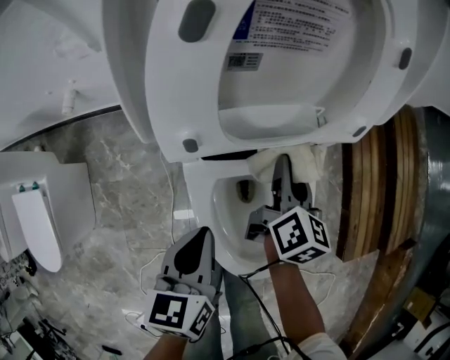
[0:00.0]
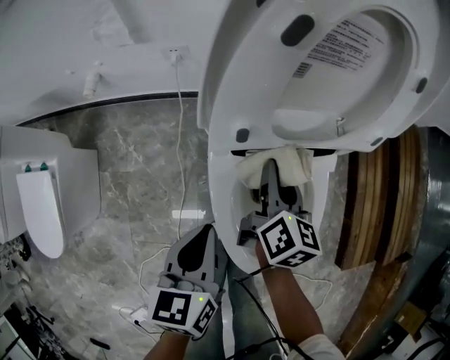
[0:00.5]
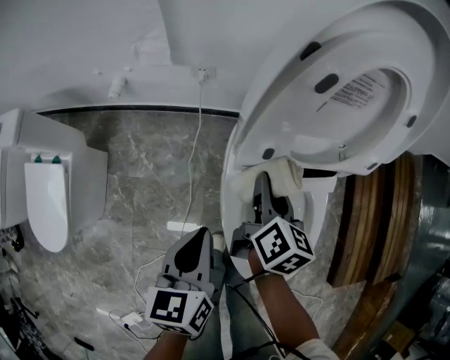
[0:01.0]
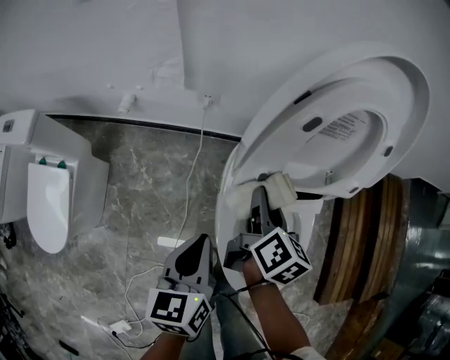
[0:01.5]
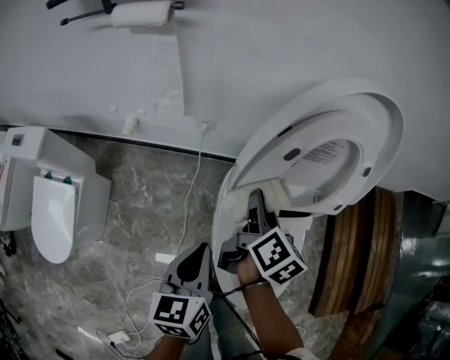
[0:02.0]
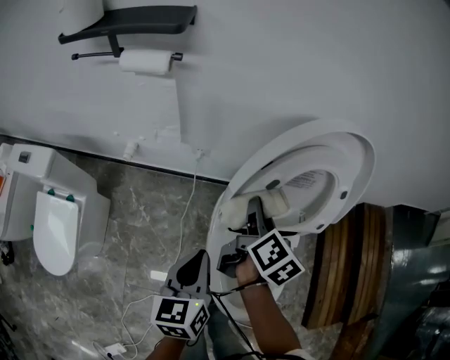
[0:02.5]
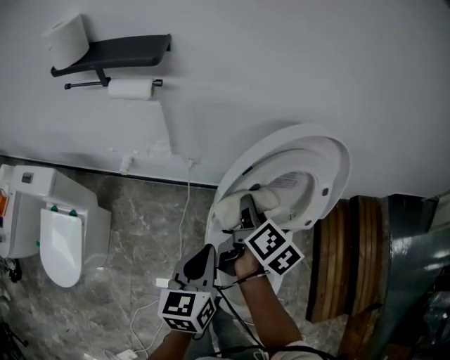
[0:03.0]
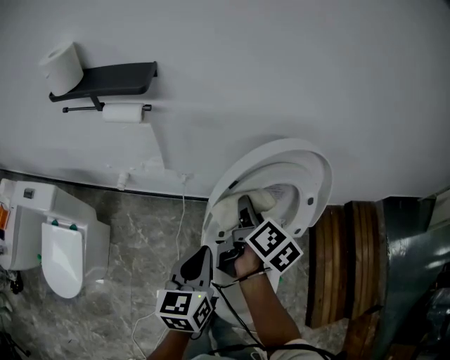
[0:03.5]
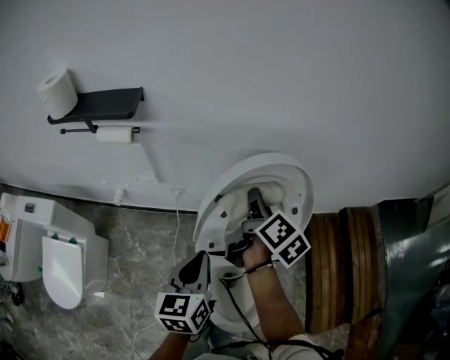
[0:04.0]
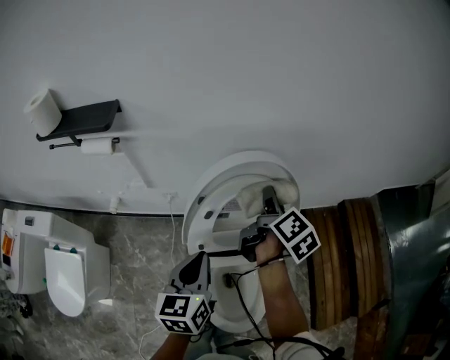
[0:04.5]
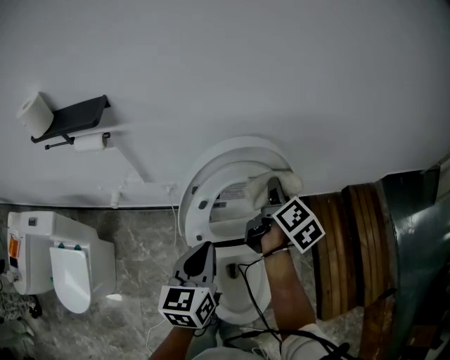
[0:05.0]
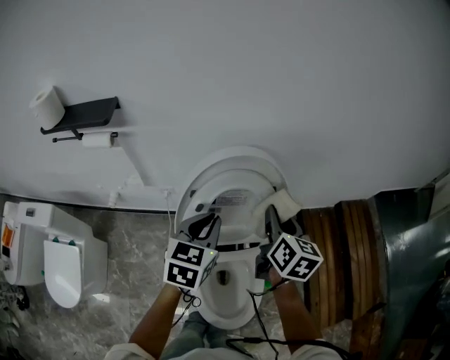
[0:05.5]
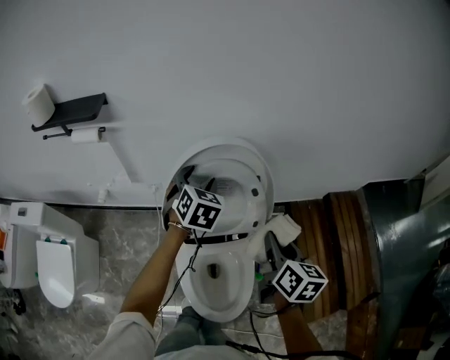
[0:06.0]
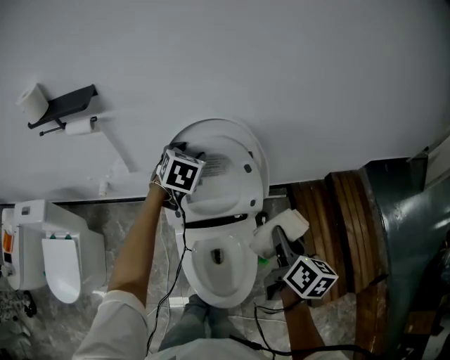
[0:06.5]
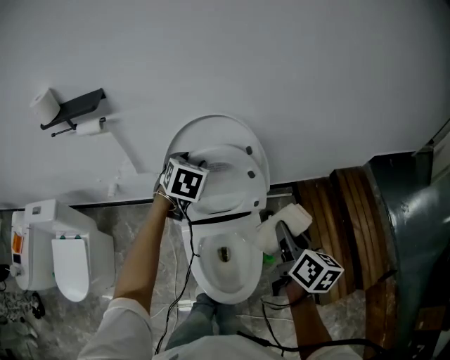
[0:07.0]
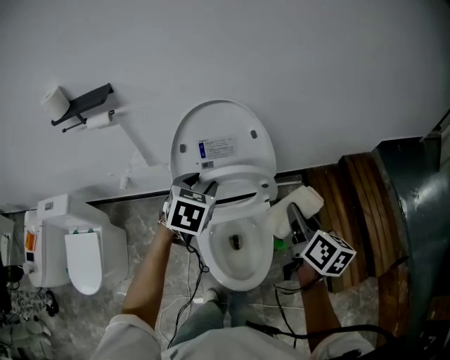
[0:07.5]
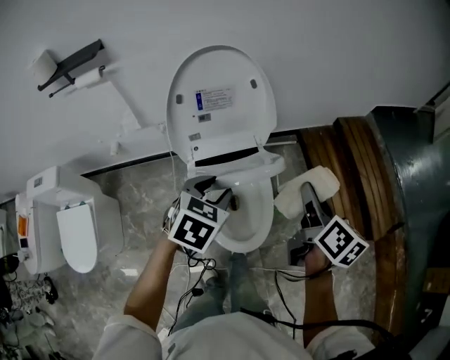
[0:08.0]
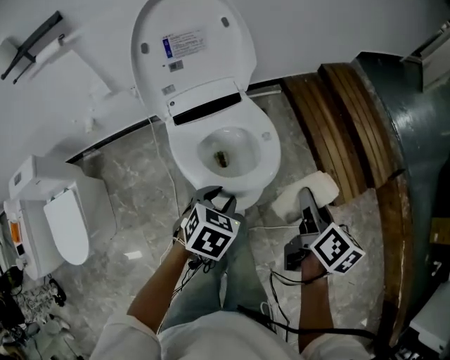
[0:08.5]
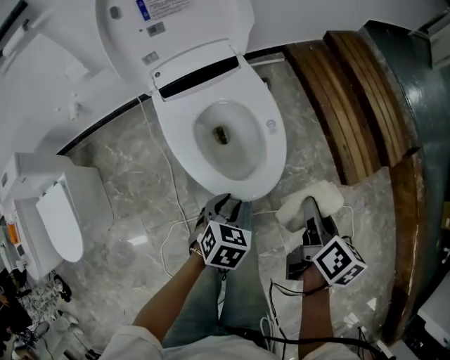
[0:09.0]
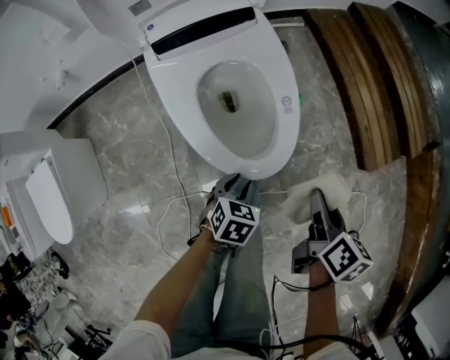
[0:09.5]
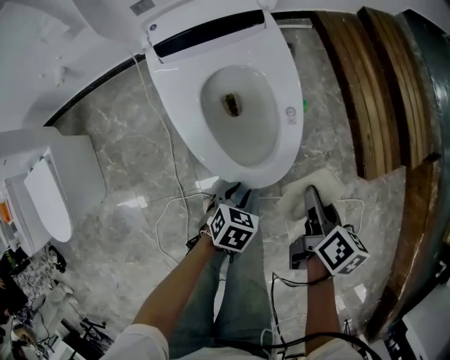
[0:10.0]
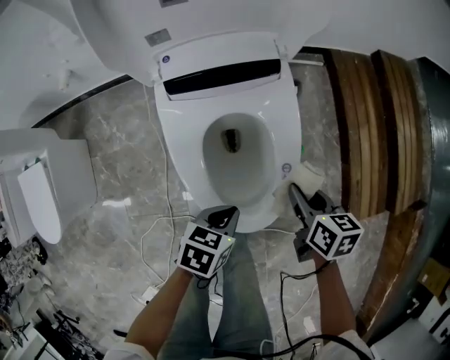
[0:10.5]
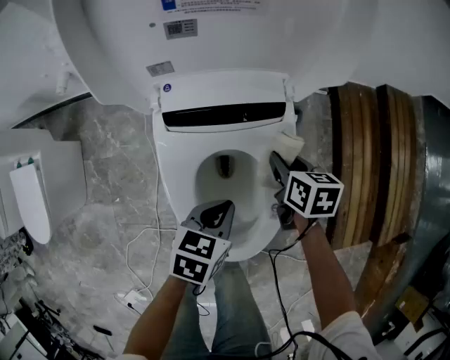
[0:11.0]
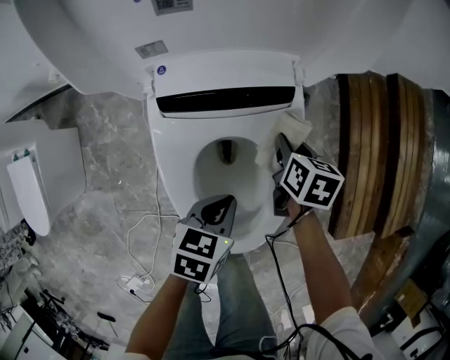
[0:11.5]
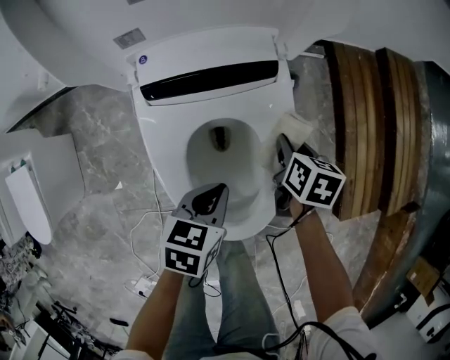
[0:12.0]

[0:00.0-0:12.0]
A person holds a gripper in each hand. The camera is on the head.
0.0 to 2.0 s: The right gripper is displaced to the left and upward by some 25 cm, while the left gripper shifts some 15 cm upward and to the left.
2.0 to 4.0 s: Both grippers travel together upward, forward and to the right, some 20 cm.
4.0 to 6.0 s: The left gripper travels forward and to the right by approximately 20 cm, rotates around the line of its fingers by approximately 40 degrees, clockwise from behind, and opens up. The right gripper travels to the right and backward by roughly 25 cm, and rotates roughly 30 degrees.
6.0 to 8.0 s: The left gripper travels backward by about 30 cm, and turns by about 30 degrees; the right gripper moves backward and to the right, approximately 20 cm.
8.0 to 10.0 s: The grippers both shift downward and backward by approximately 40 cm. The left gripper turns by roughly 20 degrees, while the right gripper rotates about 30 degrees.
10.0 to 12.0 s: The right gripper goes approximately 30 cm forward, and rotates some 30 degrees. Meanwhile the left gripper shifts some 20 cm forward and upward, swivels approximately 30 degrees, and closes.

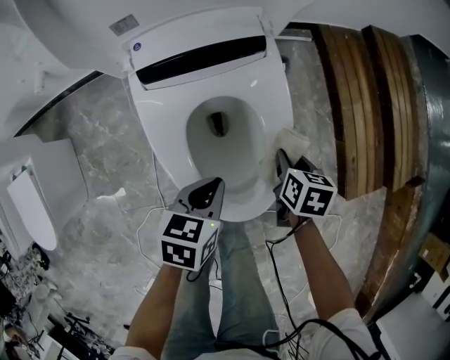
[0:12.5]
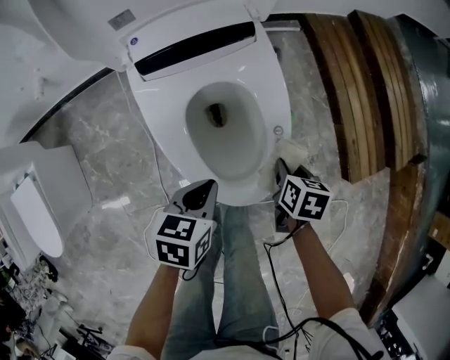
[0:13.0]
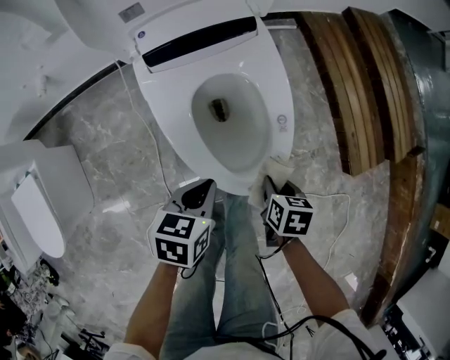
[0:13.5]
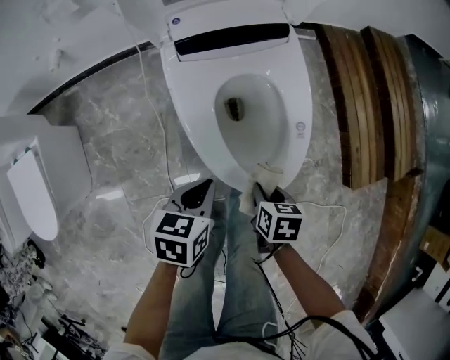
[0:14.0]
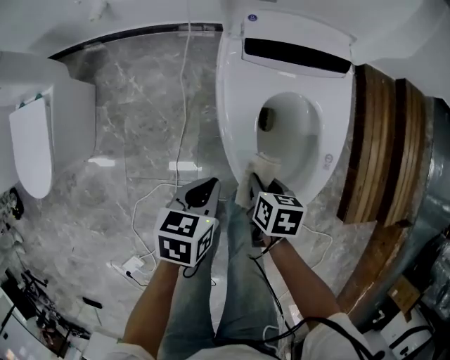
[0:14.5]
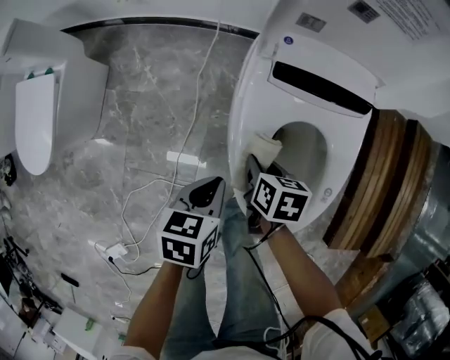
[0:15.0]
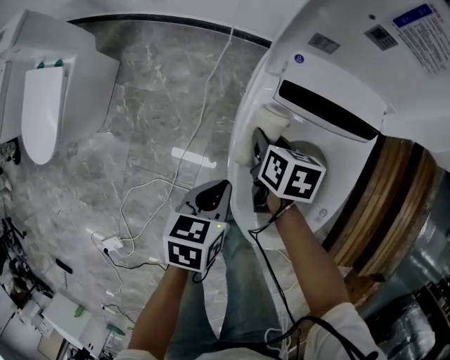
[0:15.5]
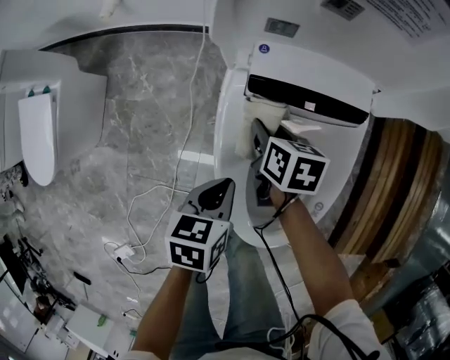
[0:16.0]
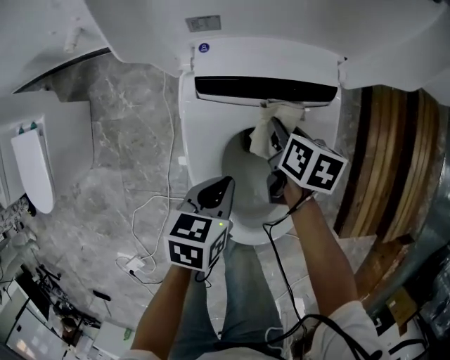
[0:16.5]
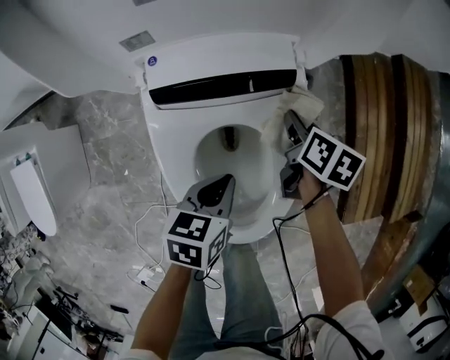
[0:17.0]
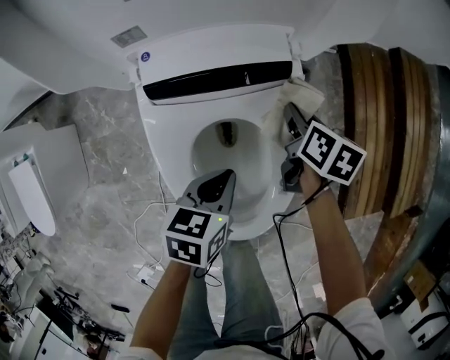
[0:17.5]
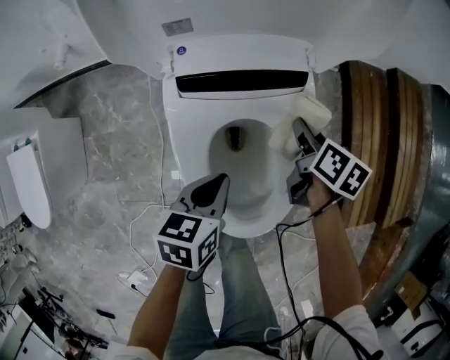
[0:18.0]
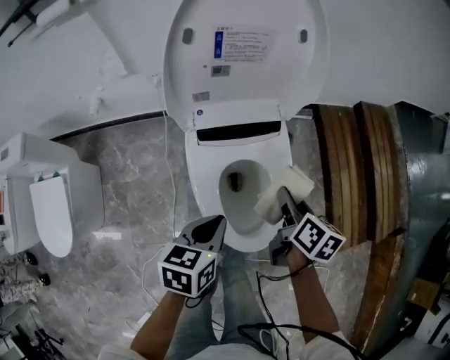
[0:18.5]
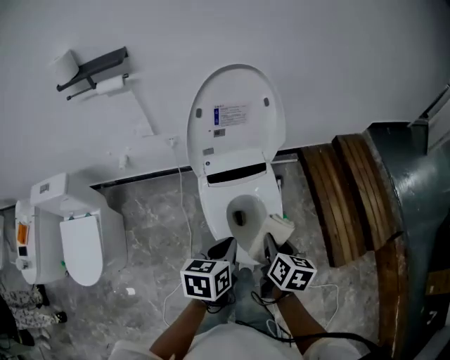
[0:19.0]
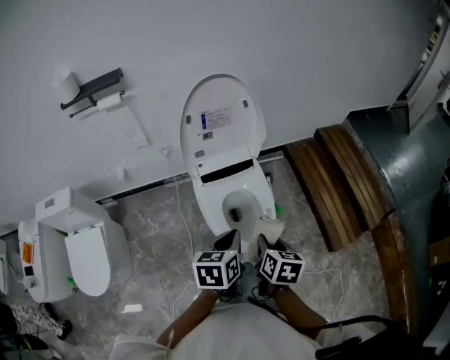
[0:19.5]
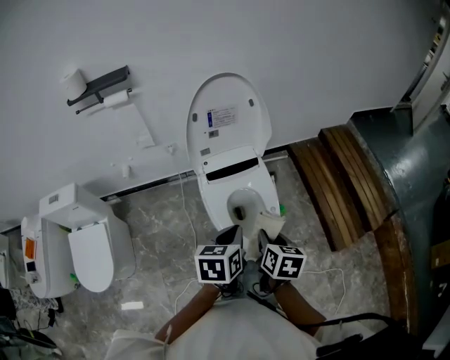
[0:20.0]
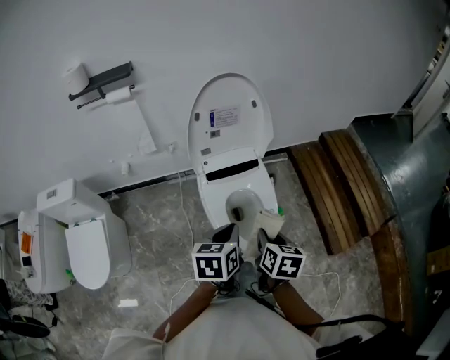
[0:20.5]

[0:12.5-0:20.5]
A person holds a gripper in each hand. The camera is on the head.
12.5 to 14.5 s: The left gripper changes place by approximately 20 cm. Meanwhile the right gripper shifts by about 25 cm.
14.5 to 16.5 s: The right gripper moves forward and to the right, about 30 cm. Meanwhile the left gripper is displaced to the right and forward by approximately 15 cm.
16.5 to 18.5 s: The right gripper travels upward and backward by some 25 cm, and changes its angle by approximately 30 degrees. The left gripper goes approximately 15 cm upward.
18.5 to 20.5 s: The right gripper shifts roughly 25 cm backward and upward; the left gripper heads upward and backward, covering about 20 cm.

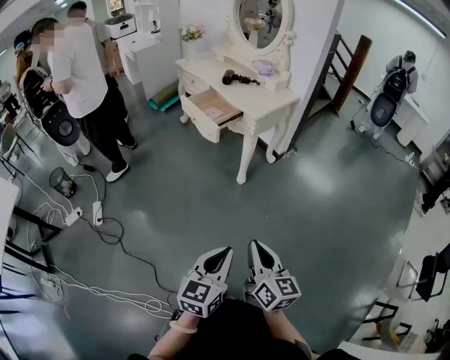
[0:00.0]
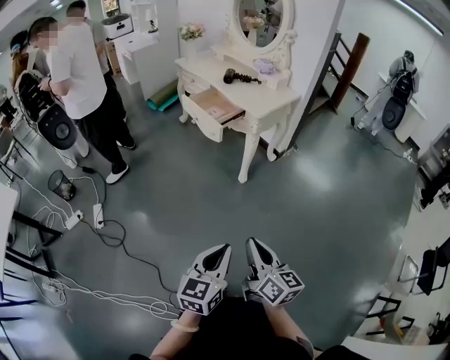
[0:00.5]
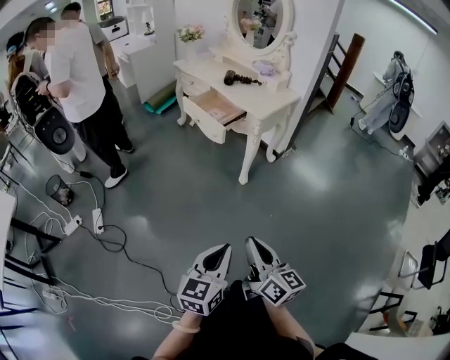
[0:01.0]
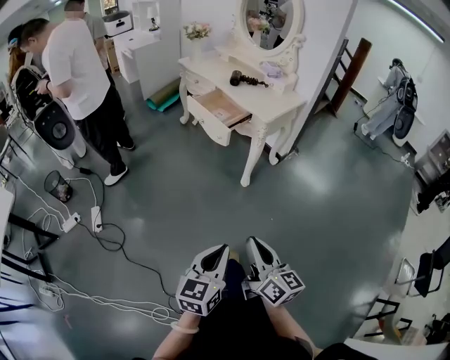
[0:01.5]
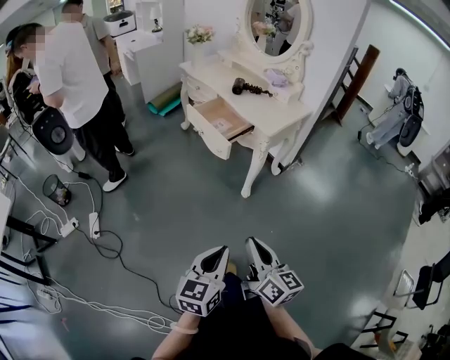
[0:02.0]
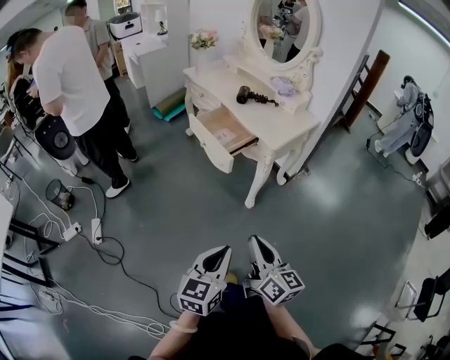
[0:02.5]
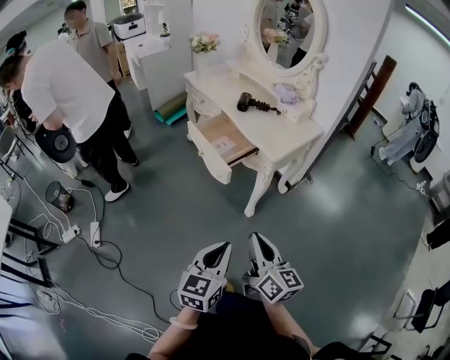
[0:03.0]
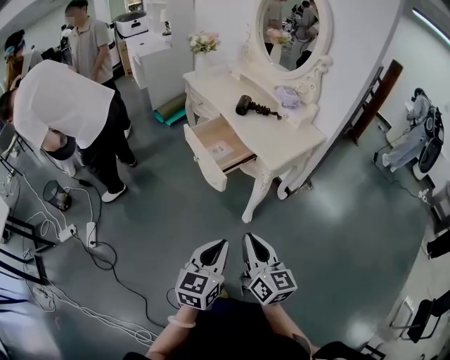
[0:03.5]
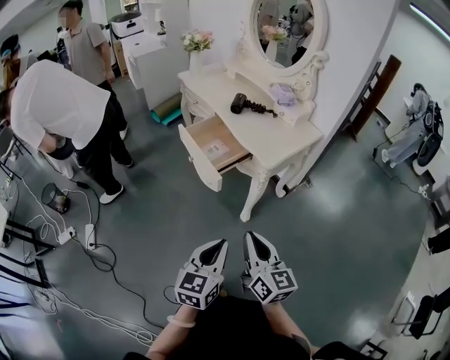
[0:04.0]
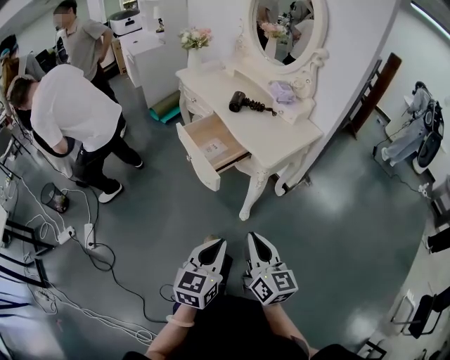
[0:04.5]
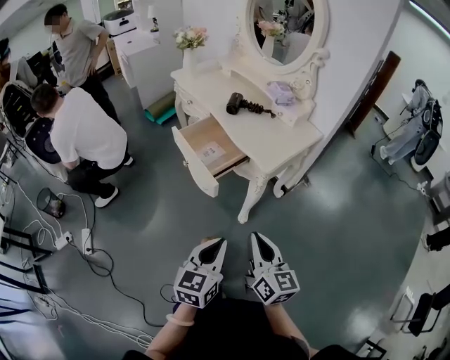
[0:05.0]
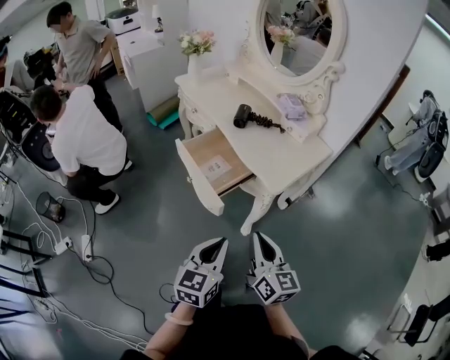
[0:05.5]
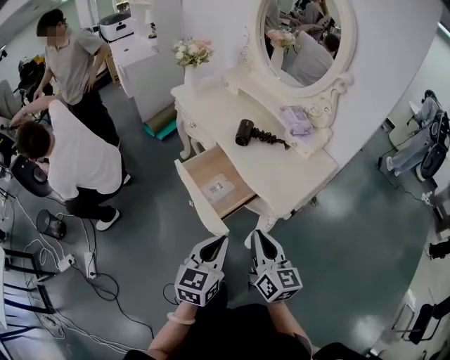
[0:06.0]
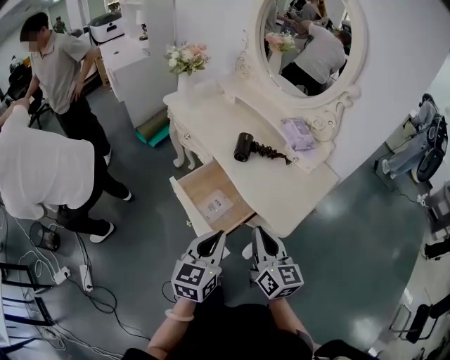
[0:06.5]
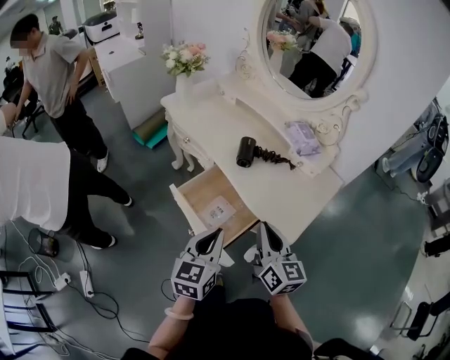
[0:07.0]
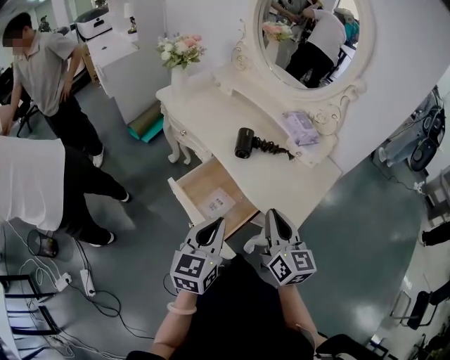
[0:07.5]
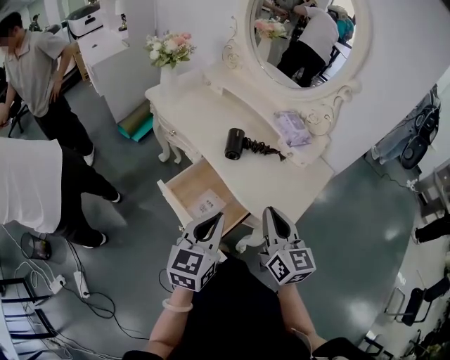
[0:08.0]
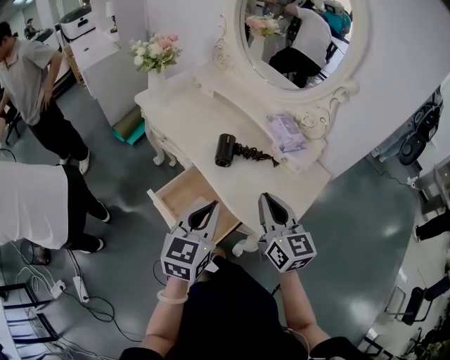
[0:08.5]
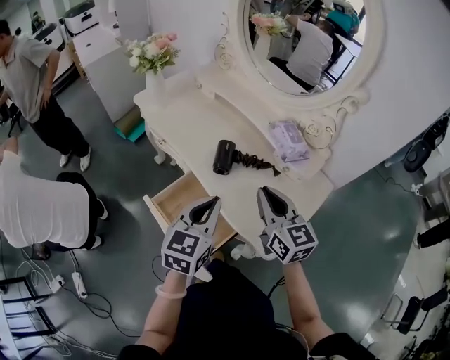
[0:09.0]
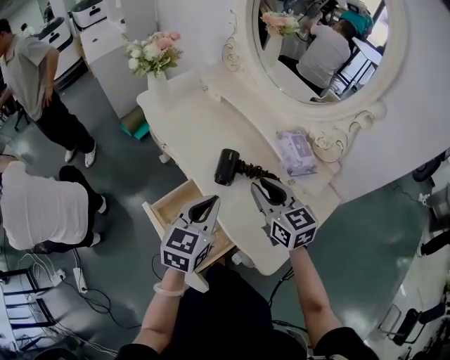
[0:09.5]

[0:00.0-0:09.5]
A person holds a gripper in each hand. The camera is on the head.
0.0 to 2.0 s: Both grippers move forward and to the left, some 15 cm.
2.0 to 4.0 s: Both grippers travel together forward, about 20 cm.
4.0 to 5.5 s: Both grippers move forward, approximately 15 cm.
5.5 to 7.5 s: The left gripper moves forward and to the left, roughly 25 cm. The right gripper travels forward by about 25 cm.
7.5 to 9.5 s: Both grippers move forward, some 20 cm. The right gripper turns by roughly 30 degrees.
